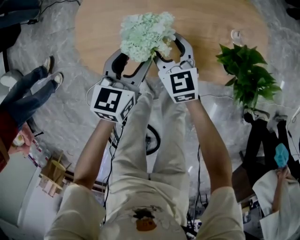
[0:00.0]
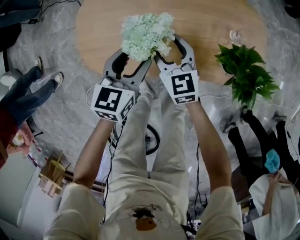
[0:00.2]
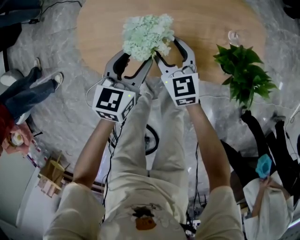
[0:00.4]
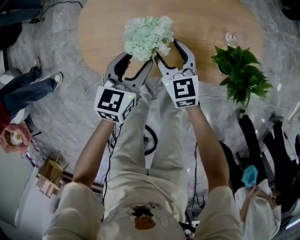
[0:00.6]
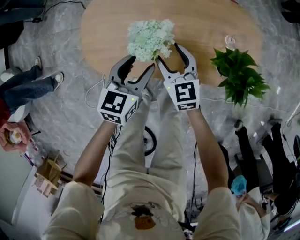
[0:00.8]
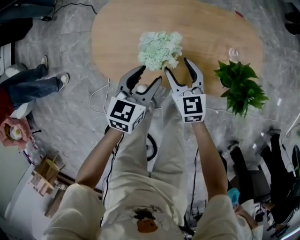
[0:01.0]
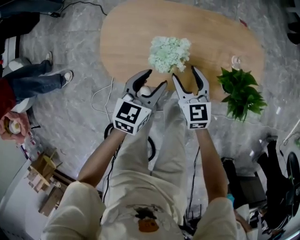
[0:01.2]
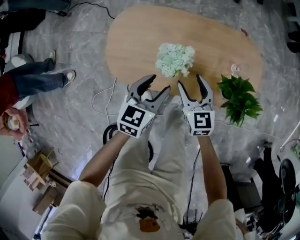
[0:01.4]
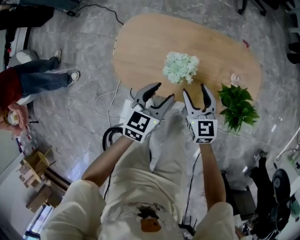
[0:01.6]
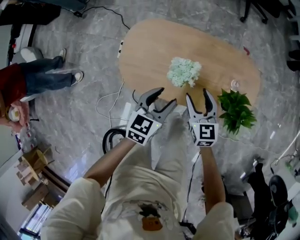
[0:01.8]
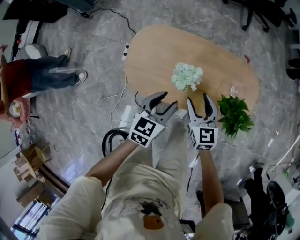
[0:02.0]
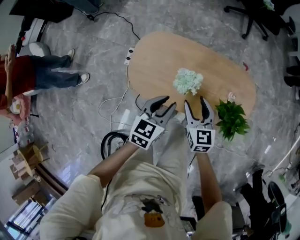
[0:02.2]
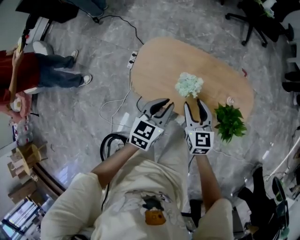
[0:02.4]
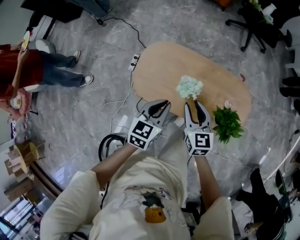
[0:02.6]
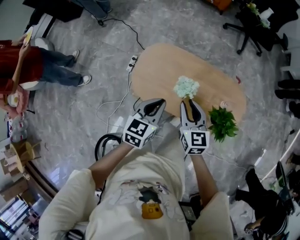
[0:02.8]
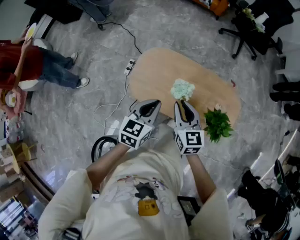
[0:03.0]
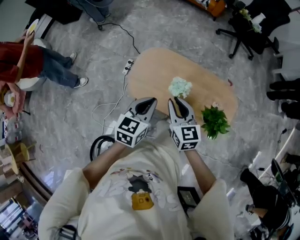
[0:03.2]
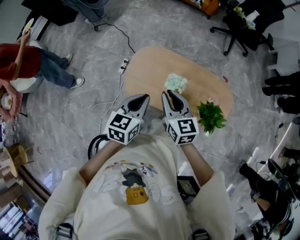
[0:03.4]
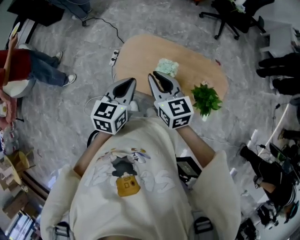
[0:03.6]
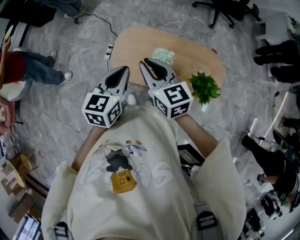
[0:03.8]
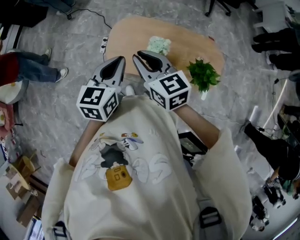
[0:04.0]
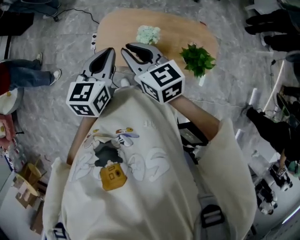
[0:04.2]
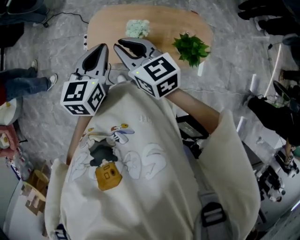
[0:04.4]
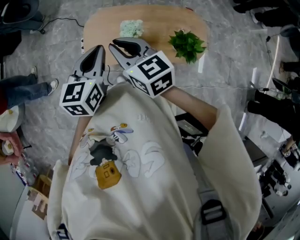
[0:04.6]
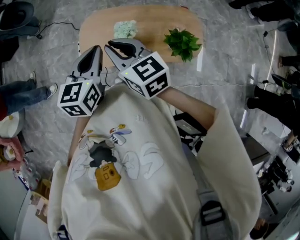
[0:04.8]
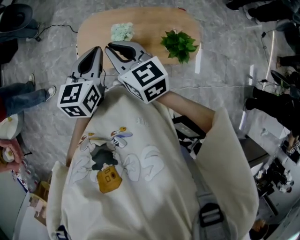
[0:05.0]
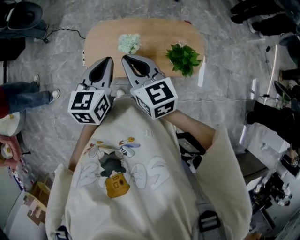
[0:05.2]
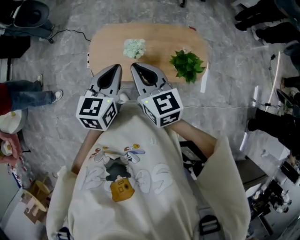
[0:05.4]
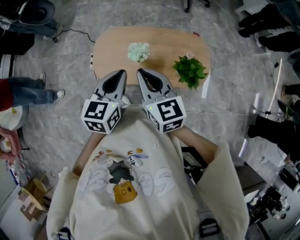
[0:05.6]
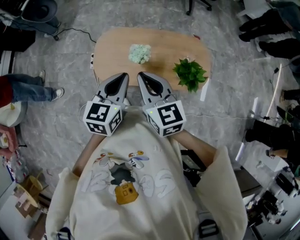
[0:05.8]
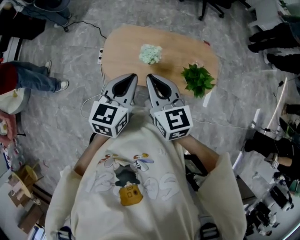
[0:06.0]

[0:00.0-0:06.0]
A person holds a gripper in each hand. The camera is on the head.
0:00.0 to 0:01.6: The right gripper goes approximately 10 cm upward and backward, while the left gripper moves upward, about 10 cm.
0:01.6 to 0:03.0: The left gripper moves upward, approximately 20 cm, and closes up. Meanwhile the right gripper goes about 25 cm upward and to the left, and closes up.
0:03.0 to 0:04.4: The right gripper travels upward and to the left by approximately 10 cm. Meanwhile the left gripper shifts some 10 cm upward.
0:04.4 to 0:06.0: Both grippers travel together to the right, some 10 cm.

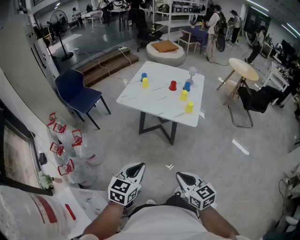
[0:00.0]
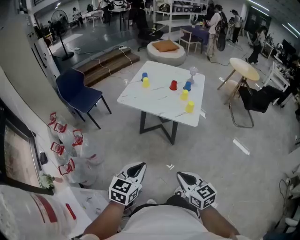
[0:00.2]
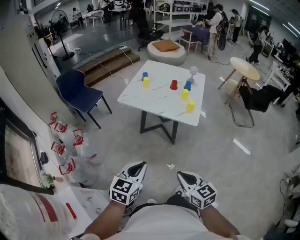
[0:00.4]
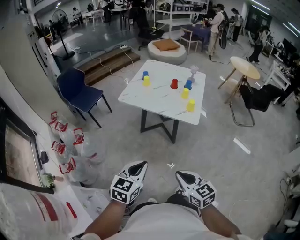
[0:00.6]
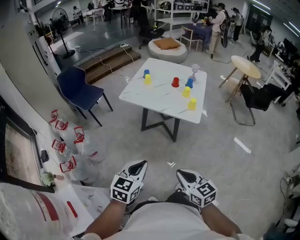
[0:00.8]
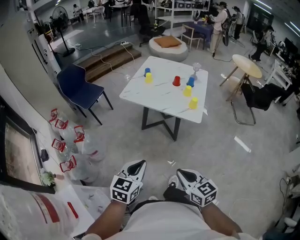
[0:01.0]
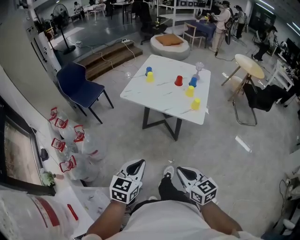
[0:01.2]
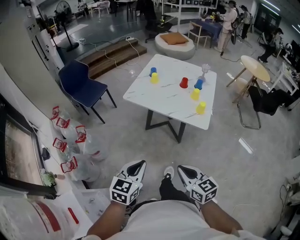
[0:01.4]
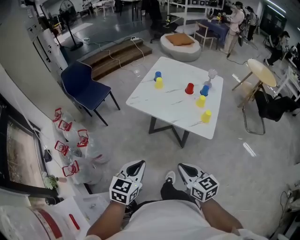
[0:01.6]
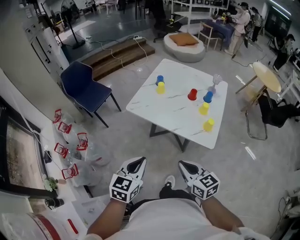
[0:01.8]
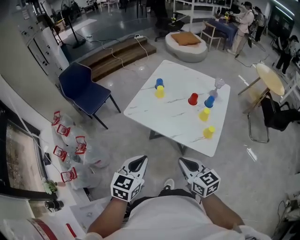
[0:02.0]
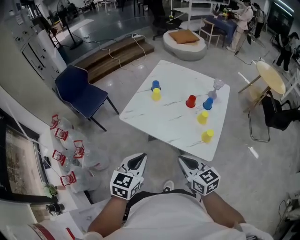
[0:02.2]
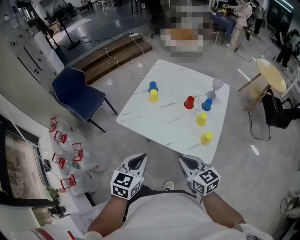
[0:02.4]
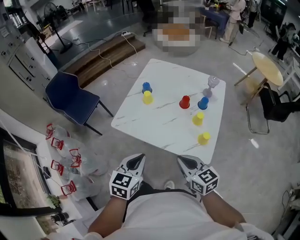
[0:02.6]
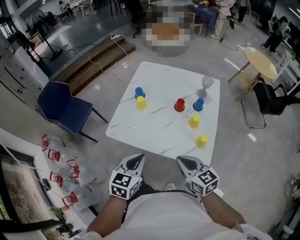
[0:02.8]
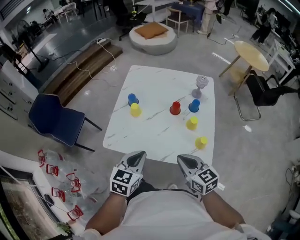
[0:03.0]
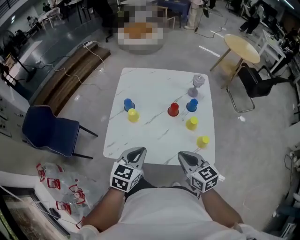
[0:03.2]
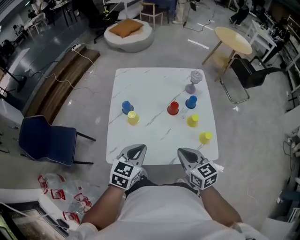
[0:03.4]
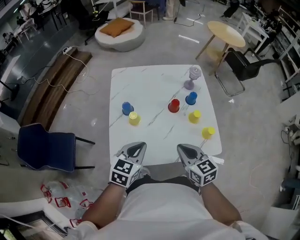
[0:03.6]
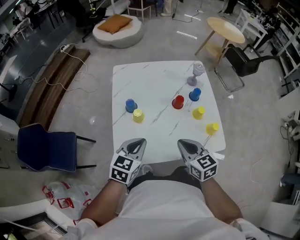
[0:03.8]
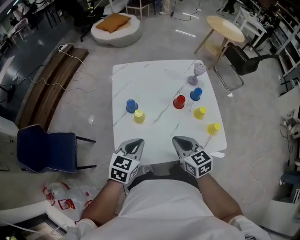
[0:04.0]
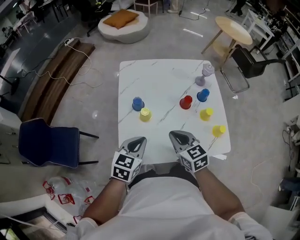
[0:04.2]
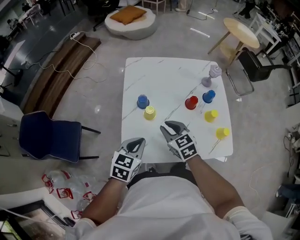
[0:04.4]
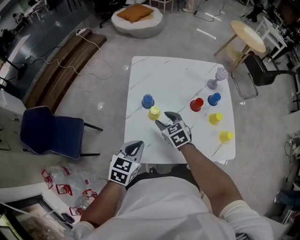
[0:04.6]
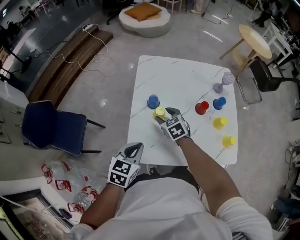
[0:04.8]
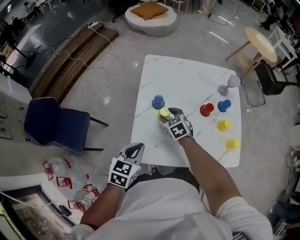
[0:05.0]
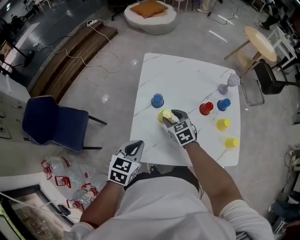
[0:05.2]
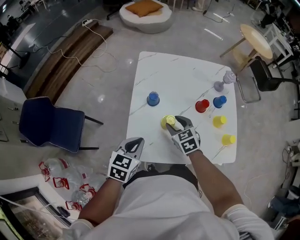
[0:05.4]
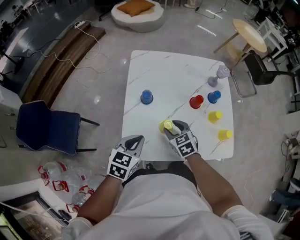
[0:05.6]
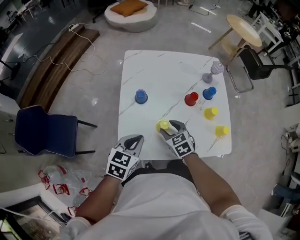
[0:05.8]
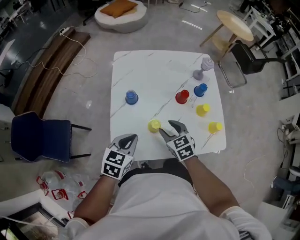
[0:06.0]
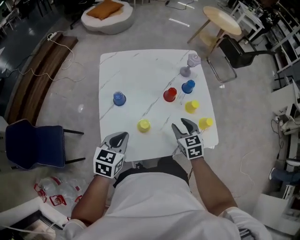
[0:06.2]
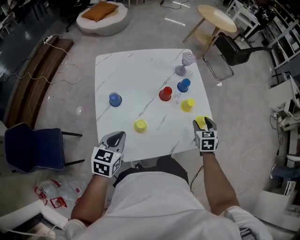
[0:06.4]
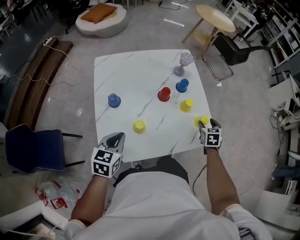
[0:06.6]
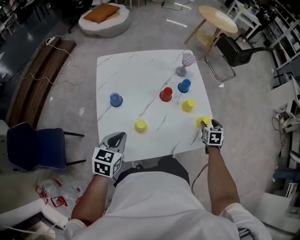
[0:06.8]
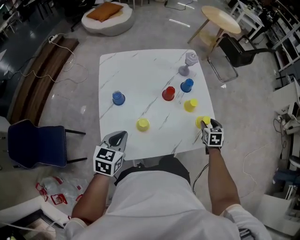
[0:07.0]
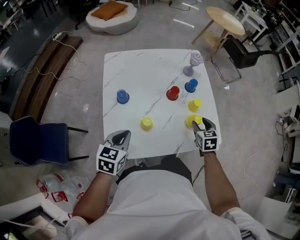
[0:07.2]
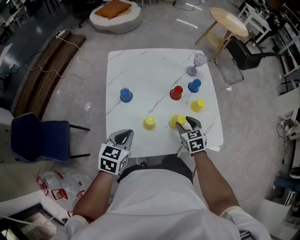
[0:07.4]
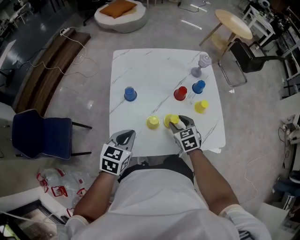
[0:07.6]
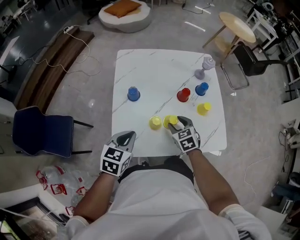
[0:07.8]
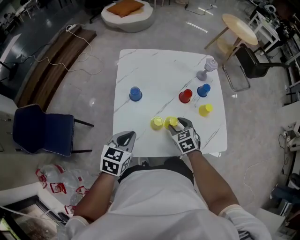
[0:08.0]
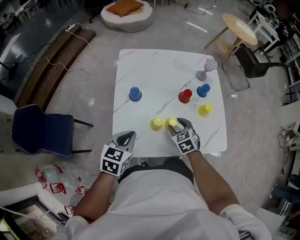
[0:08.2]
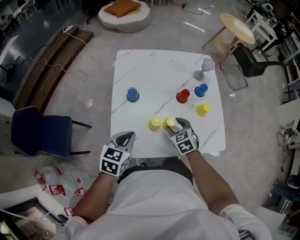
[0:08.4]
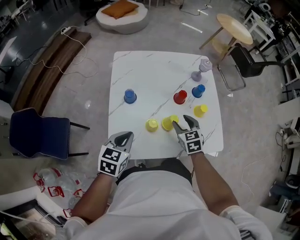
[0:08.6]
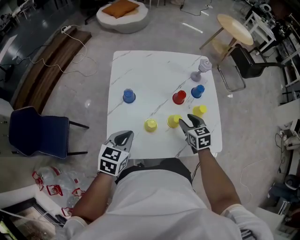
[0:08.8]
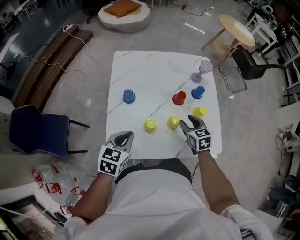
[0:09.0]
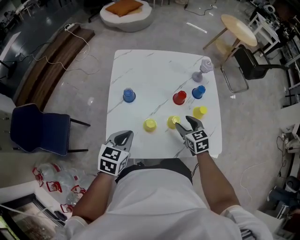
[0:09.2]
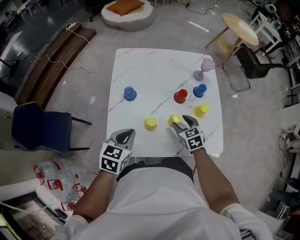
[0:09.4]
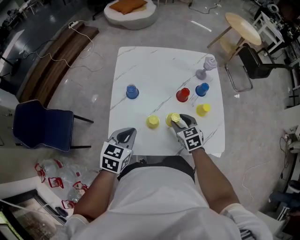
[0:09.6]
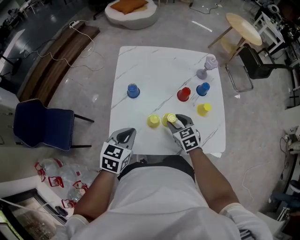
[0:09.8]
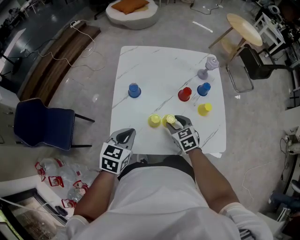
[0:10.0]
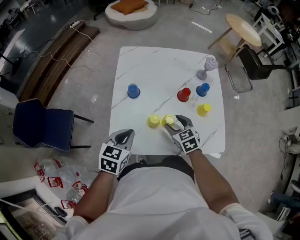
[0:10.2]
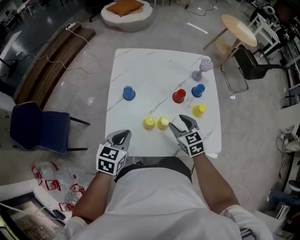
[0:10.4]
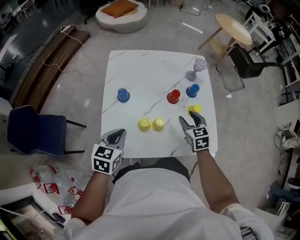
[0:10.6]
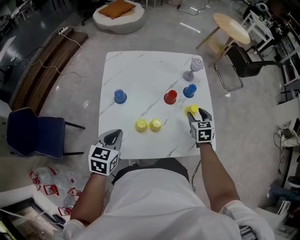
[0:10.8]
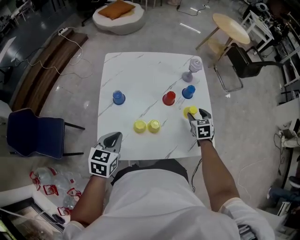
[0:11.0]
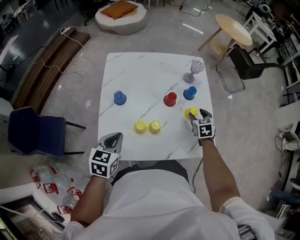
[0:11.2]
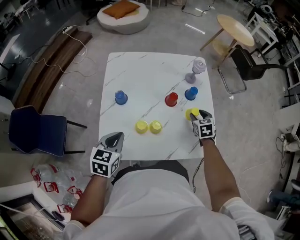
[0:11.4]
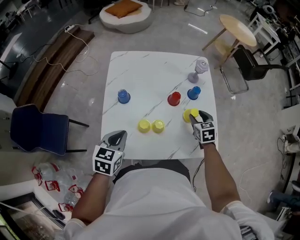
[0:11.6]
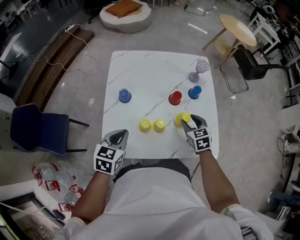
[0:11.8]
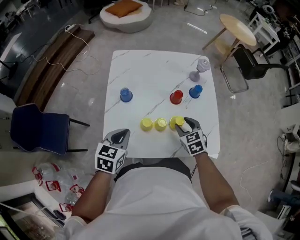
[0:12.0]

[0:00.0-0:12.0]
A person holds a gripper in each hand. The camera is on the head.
0:00.0 to 0:01.6: The two grippers go approximately 15 cm forward.
0:01.6 to 0:03.0: The grippers both shift forward by about 35 cm.
0:03.0 to 0:04.4: Both grippers move to the left and forward, about 25 cm.
0:04.4 to 0:06.0: The right gripper moves to the right, approximately 5 cm, and opens.
0:07.6 to 0:09.0: The right gripper goes about 5 cm to the right.
0:09.0 to 0:10.4: The right gripper goes approximately 5 cm to the left.
0:10.4 to 0:12.0: The right gripper goes to the right and returns, some 15 cm each way.

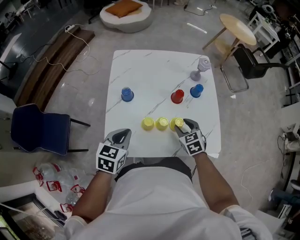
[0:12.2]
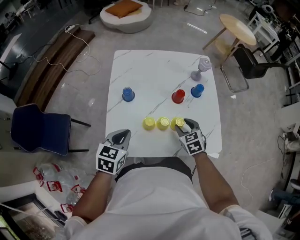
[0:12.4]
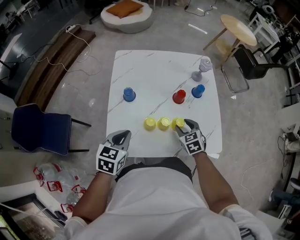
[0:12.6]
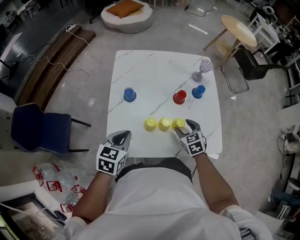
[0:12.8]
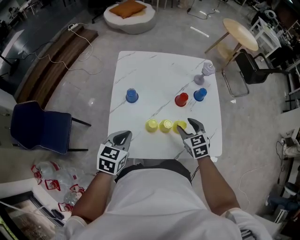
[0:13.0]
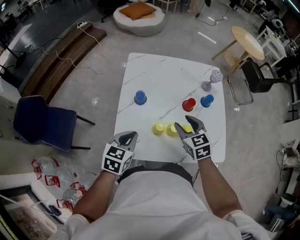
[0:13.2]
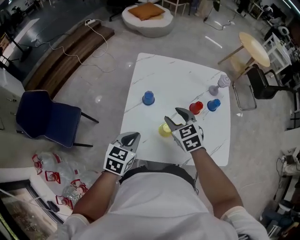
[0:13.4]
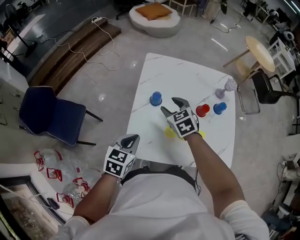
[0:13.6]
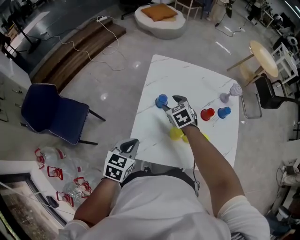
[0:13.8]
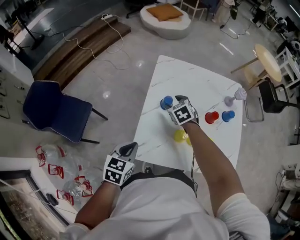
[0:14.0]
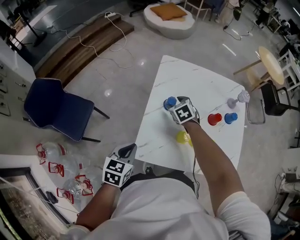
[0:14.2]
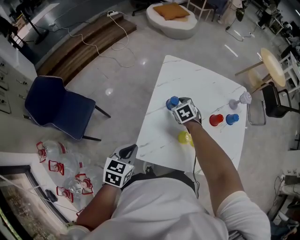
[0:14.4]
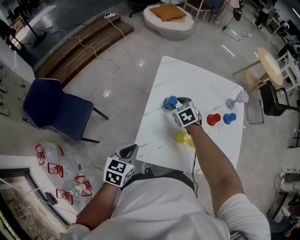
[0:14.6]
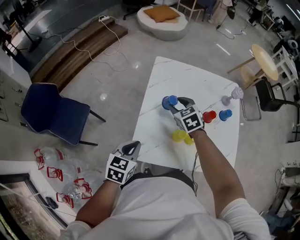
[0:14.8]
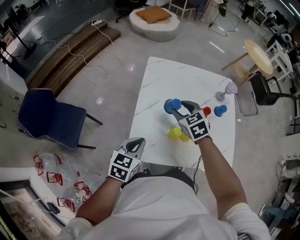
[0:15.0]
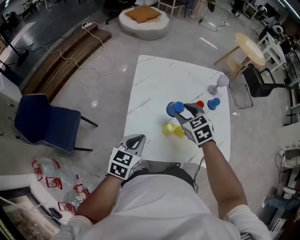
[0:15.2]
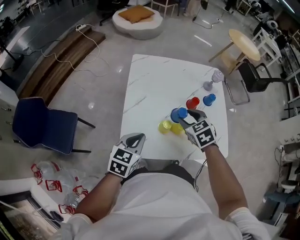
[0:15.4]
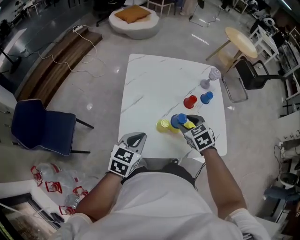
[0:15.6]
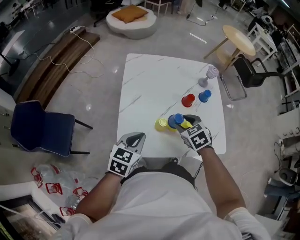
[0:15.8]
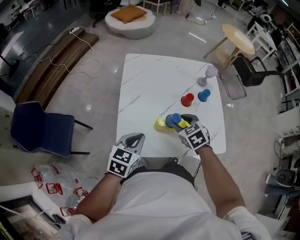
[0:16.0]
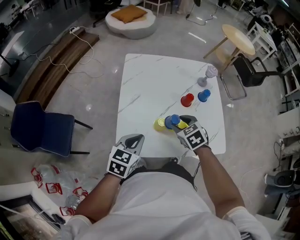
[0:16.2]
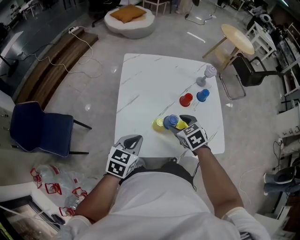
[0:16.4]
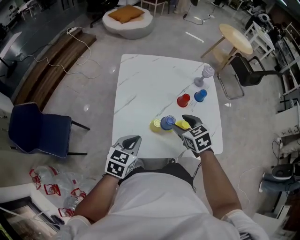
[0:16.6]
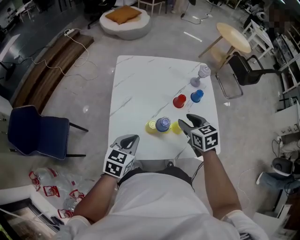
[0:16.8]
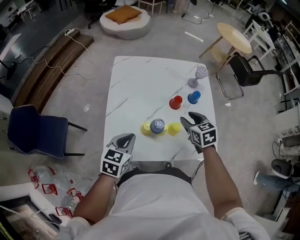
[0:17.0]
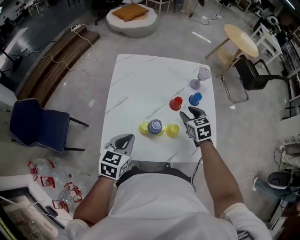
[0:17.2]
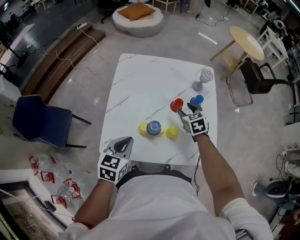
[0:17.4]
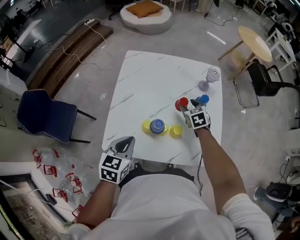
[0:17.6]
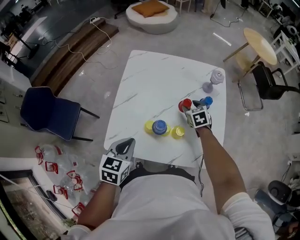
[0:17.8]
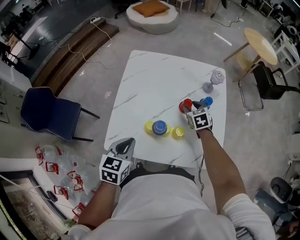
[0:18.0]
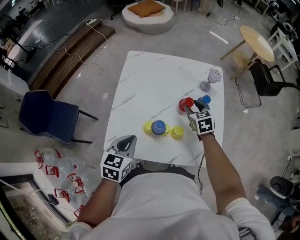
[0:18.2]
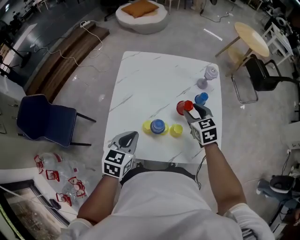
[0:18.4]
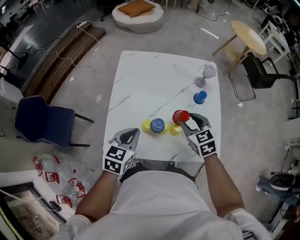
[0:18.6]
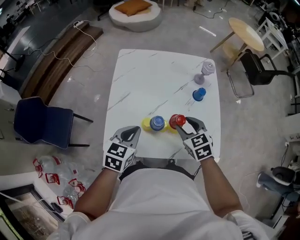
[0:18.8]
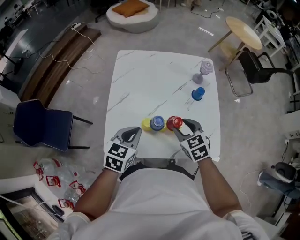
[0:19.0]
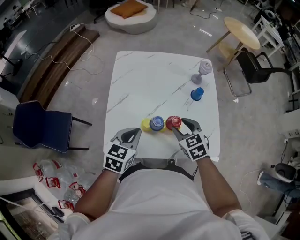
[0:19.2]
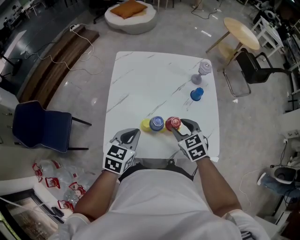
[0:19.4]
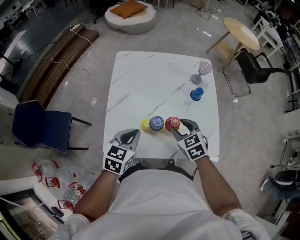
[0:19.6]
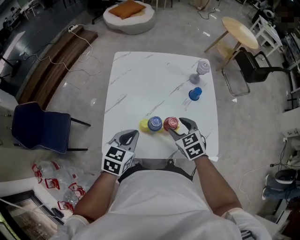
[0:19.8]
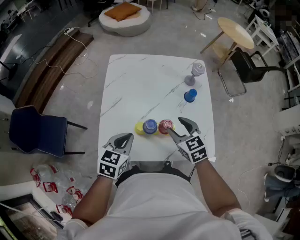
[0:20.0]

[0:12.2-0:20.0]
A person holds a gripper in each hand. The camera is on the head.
0:12.2 to 0:13.8: The right gripper heads to the left and forward, covering some 30 cm. The left gripper heads to the left, covering roughly 10 cm.
0:13.8 to 0:15.4: The right gripper shifts some 20 cm to the right, backward and upward. Meanwhile the left gripper heads to the right, covering approximately 5 cm.
0:15.4 to 0:16.8: The right gripper travels to the right by about 10 cm, and rotates about 20 degrees.
0:16.8 to 0:18.4: The right gripper heads forward and to the right, covering roughly 10 cm.
0:18.4 to 0:20.0: The right gripper moves backward, roughly 10 cm.
